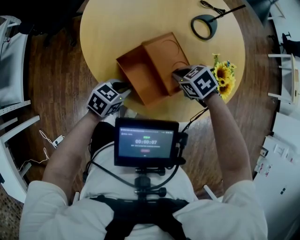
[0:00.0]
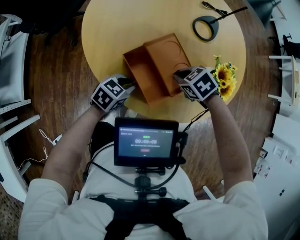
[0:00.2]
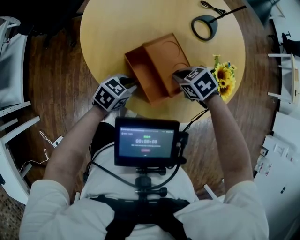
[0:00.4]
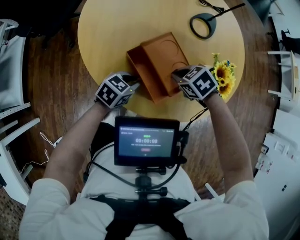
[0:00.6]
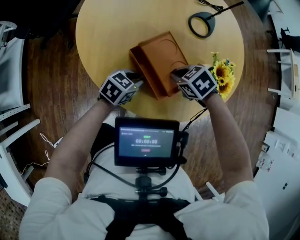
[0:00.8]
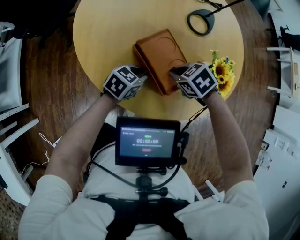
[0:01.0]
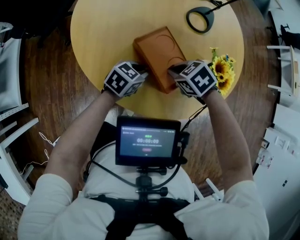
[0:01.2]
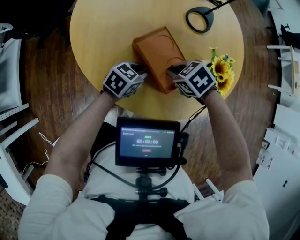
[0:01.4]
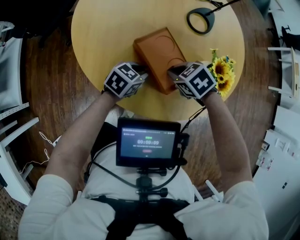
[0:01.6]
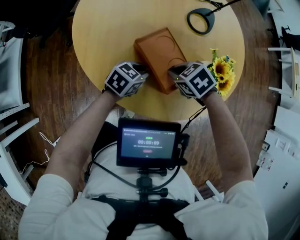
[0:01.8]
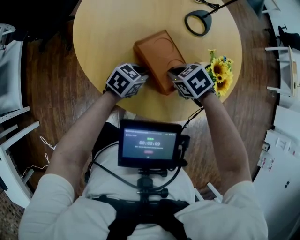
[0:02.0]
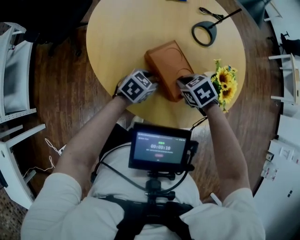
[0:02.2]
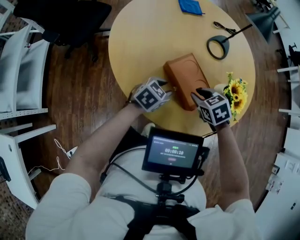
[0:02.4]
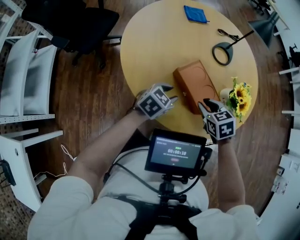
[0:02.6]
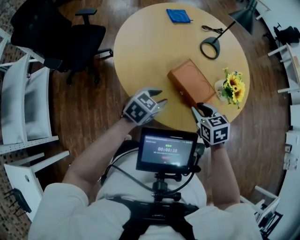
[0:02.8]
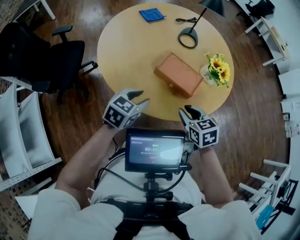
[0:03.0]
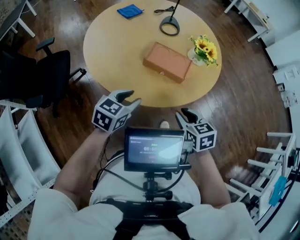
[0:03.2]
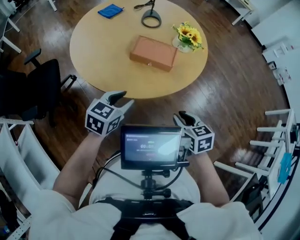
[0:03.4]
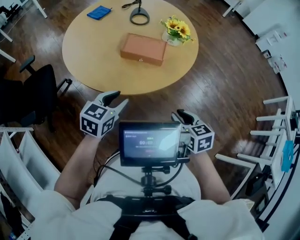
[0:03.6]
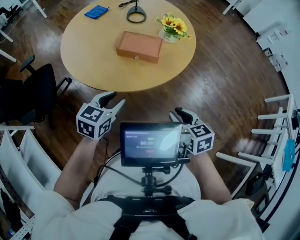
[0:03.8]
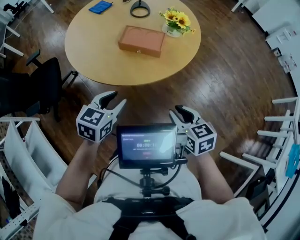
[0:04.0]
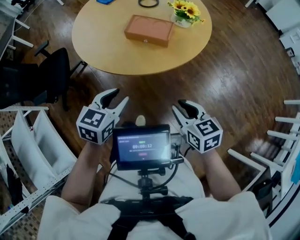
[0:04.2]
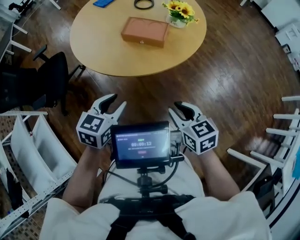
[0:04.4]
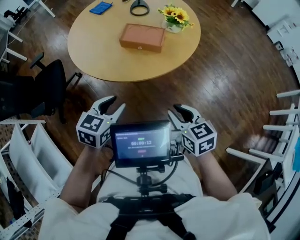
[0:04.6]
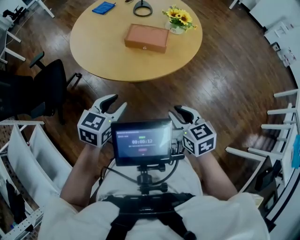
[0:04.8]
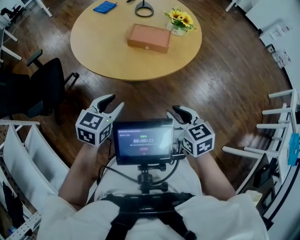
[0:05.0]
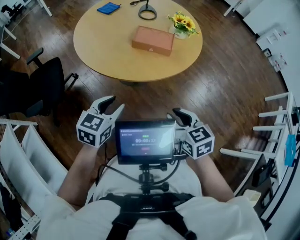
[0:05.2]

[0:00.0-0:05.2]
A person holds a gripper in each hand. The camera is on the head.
0.0 to 1.8 s: The left gripper moves about 10 cm.
1.8 to 3.4 s: The left gripper moves some 25 cm, and swivels some 30 degrees. Meanwhile the right gripper changes place by some 30 cm, rotates roughly 70 degrees, and opens.
3.4 to 5.2 s: The left gripper goes some 15 cm backward and to the left, while the right gripper shifts some 15 cm backward, to the left and upward.

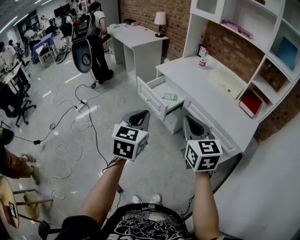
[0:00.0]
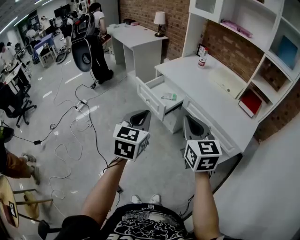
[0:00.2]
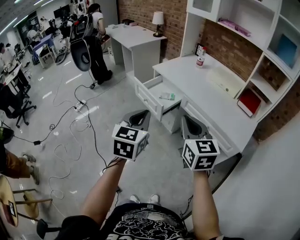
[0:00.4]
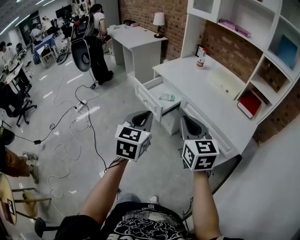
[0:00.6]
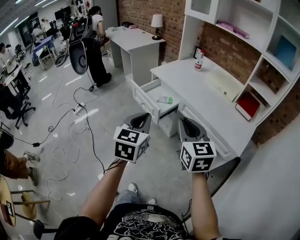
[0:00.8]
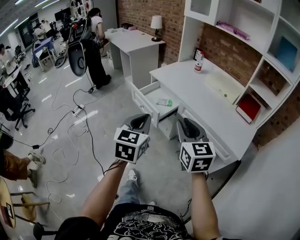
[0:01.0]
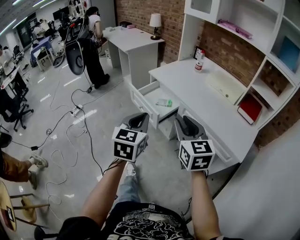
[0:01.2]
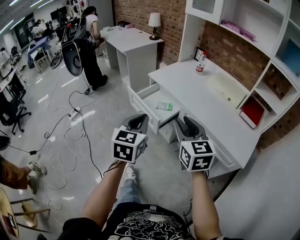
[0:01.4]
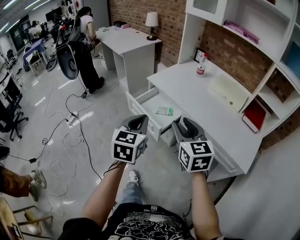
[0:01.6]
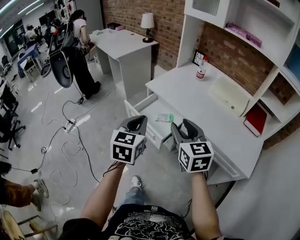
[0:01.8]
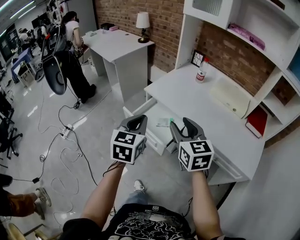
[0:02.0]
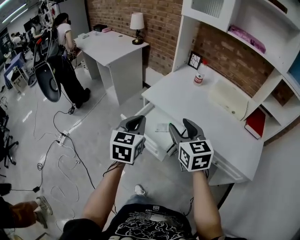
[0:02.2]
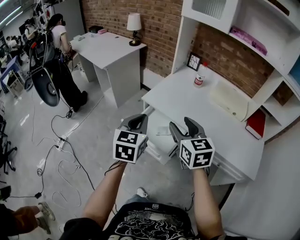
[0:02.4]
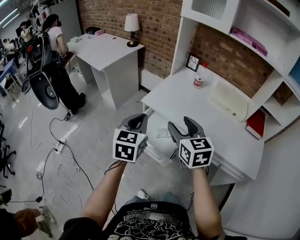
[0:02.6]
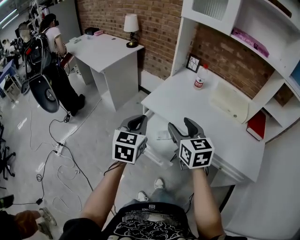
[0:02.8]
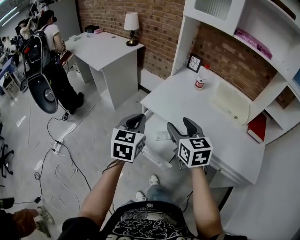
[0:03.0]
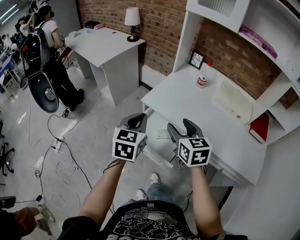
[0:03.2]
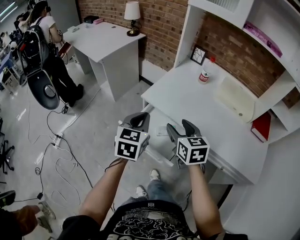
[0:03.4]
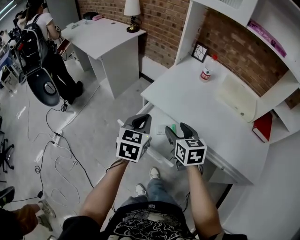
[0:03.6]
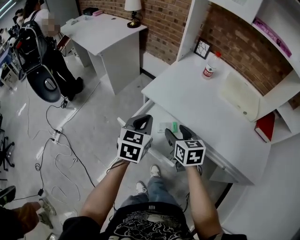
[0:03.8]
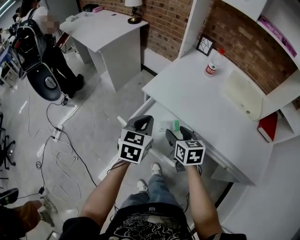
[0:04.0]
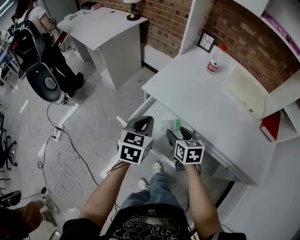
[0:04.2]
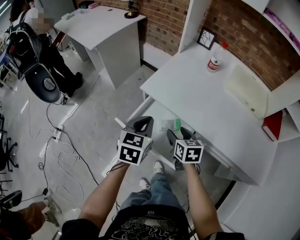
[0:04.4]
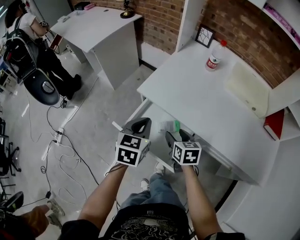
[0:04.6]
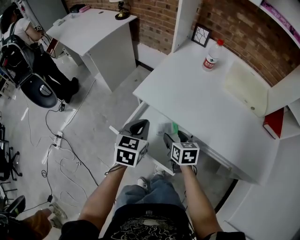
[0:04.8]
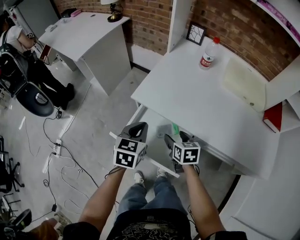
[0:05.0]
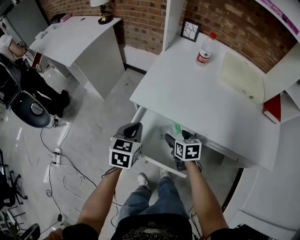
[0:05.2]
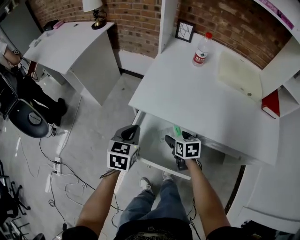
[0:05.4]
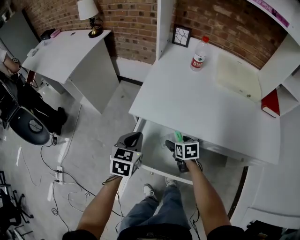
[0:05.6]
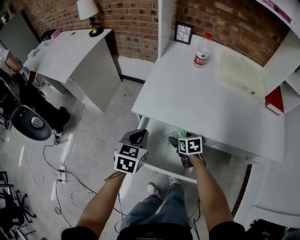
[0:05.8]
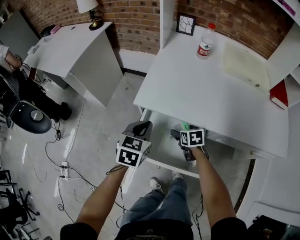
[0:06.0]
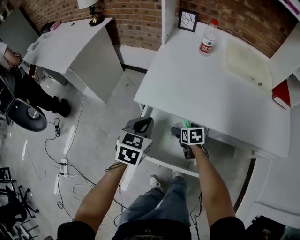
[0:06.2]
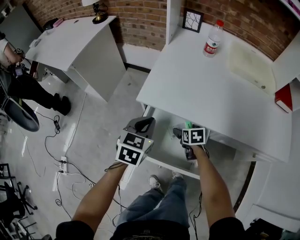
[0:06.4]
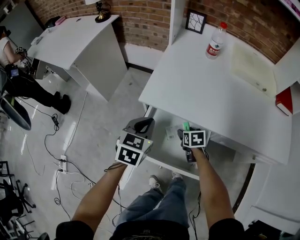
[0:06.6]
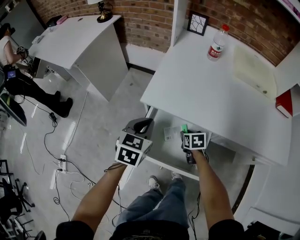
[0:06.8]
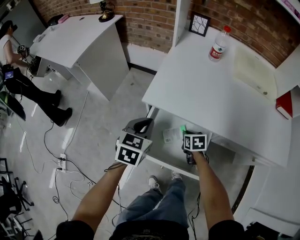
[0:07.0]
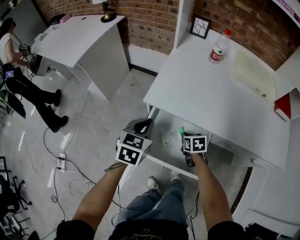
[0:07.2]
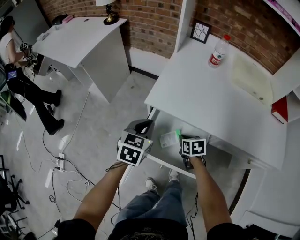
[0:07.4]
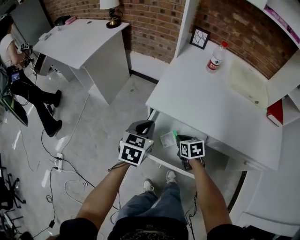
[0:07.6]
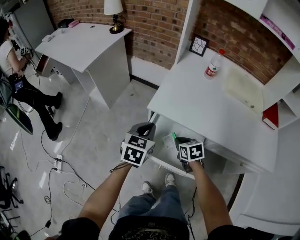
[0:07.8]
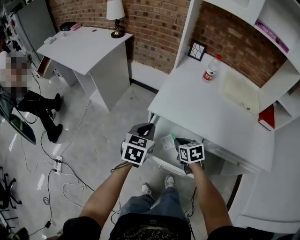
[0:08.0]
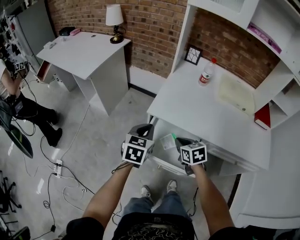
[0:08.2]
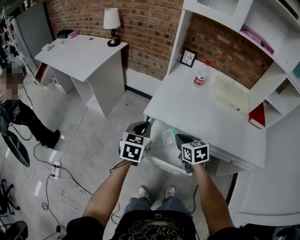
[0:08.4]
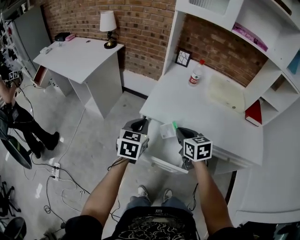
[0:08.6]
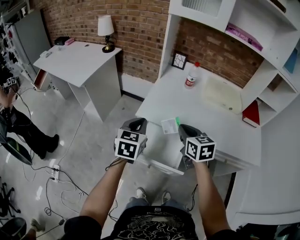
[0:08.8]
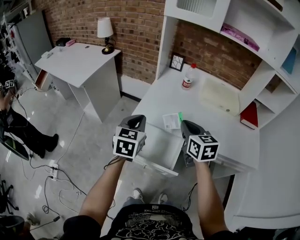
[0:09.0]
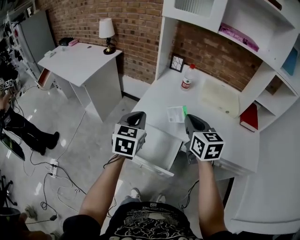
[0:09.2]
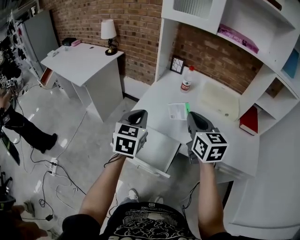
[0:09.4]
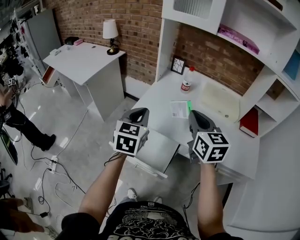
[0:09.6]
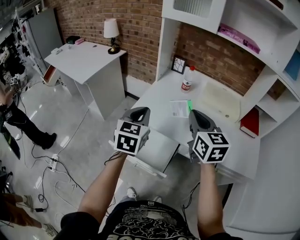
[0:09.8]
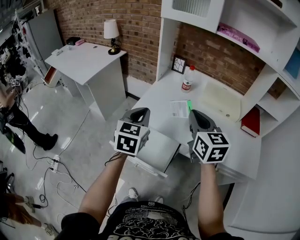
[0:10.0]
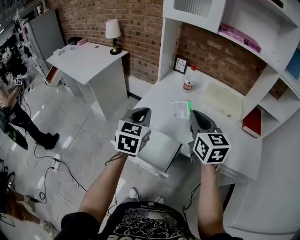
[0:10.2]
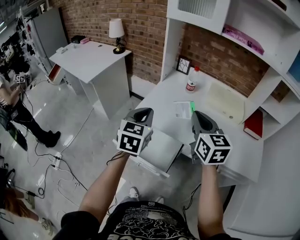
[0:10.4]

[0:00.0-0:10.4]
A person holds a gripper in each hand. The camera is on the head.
0.0 to 1.4 s: Both grippers move forward, approximately 15 cm.
1.4 to 3.0 s: The two grippers go roughly 30 cm forward.
3.0 to 4.4 s: The right gripper travels downward by approximately 25 cm, and changes its angle by approximately 30 degrees. The left gripper goes some 15 cm downward.
4.4 to 6.0 s: The left gripper moves downward and forward, roughly 10 cm, and changes its angle by about 20 degrees. Meanwhile the right gripper goes roughly 20 cm downward and forward, and opens its fingers.
6.0 to 7.4 s: The right gripper closes.
7.4 to 9.0 s: The right gripper shifts approximately 35 cm upward, and angles its fingers upward, by roughly 30 degrees. Meanwhile the left gripper heads upward, covering approximately 20 cm.
9.0 to 10.4 s: The right gripper goes roughly 10 cm upward and to the right. The left gripper goes approximately 5 cm to the right.

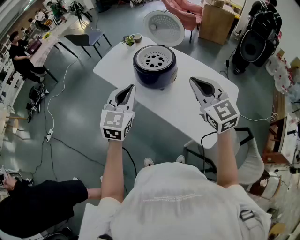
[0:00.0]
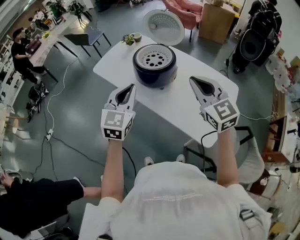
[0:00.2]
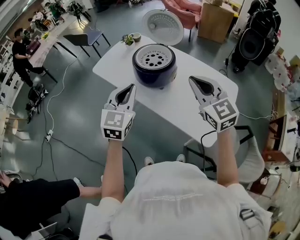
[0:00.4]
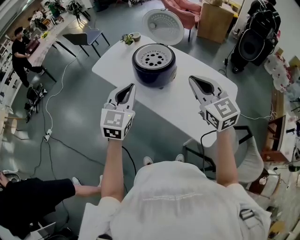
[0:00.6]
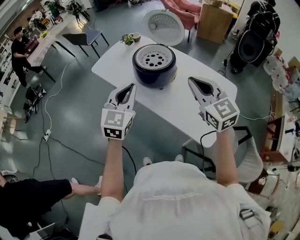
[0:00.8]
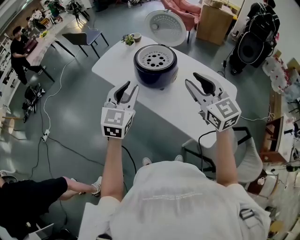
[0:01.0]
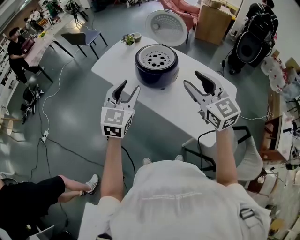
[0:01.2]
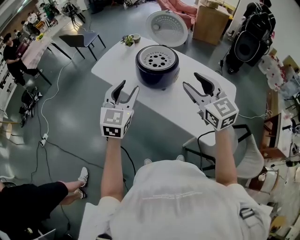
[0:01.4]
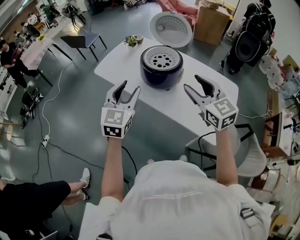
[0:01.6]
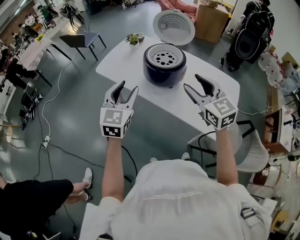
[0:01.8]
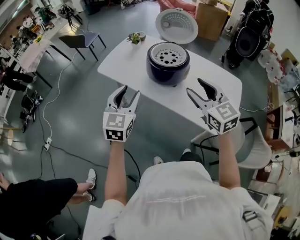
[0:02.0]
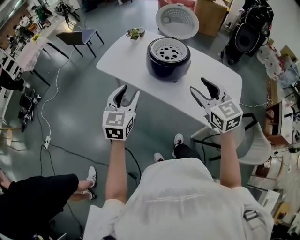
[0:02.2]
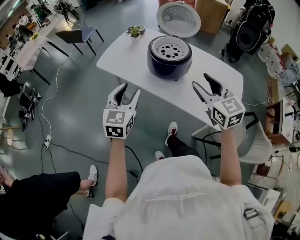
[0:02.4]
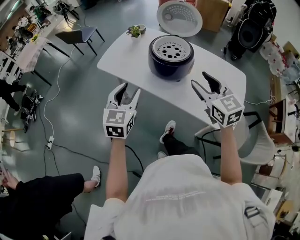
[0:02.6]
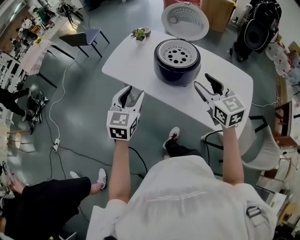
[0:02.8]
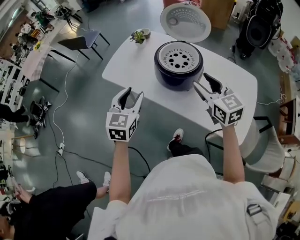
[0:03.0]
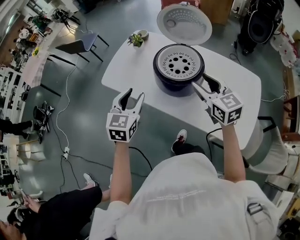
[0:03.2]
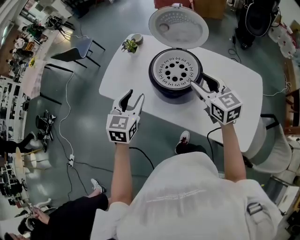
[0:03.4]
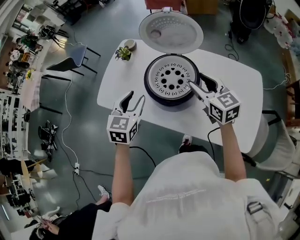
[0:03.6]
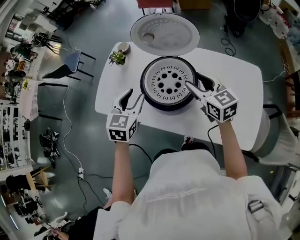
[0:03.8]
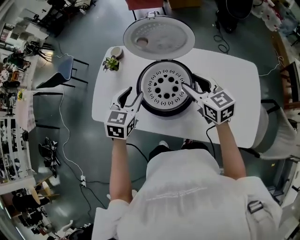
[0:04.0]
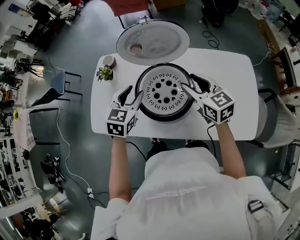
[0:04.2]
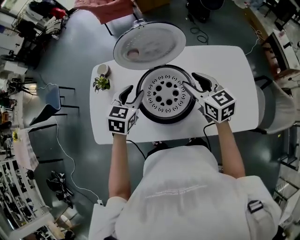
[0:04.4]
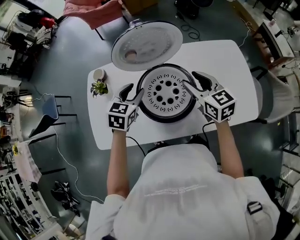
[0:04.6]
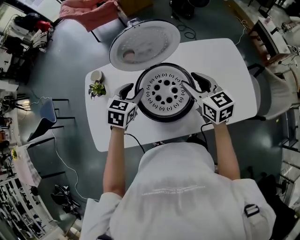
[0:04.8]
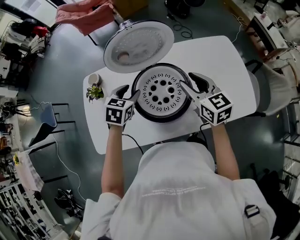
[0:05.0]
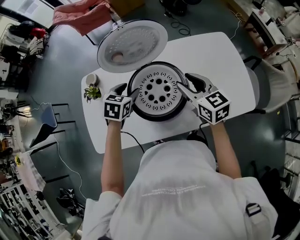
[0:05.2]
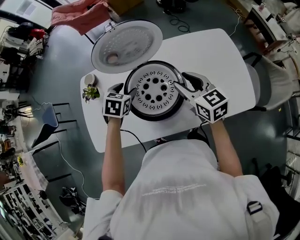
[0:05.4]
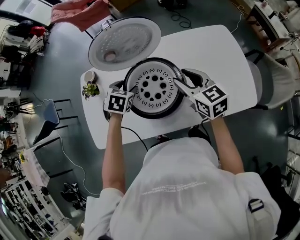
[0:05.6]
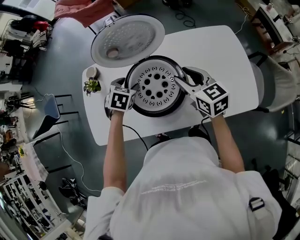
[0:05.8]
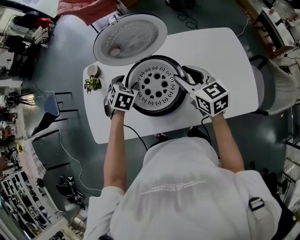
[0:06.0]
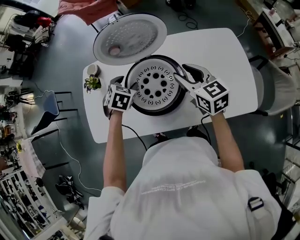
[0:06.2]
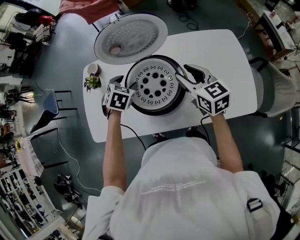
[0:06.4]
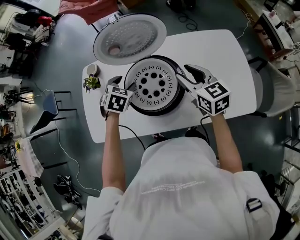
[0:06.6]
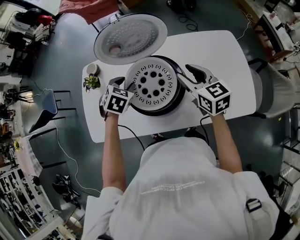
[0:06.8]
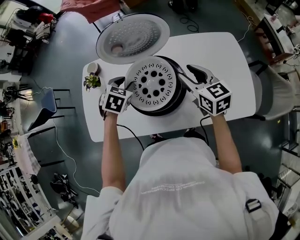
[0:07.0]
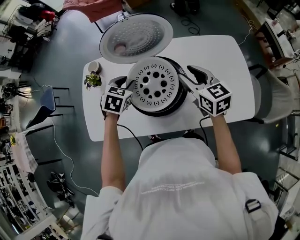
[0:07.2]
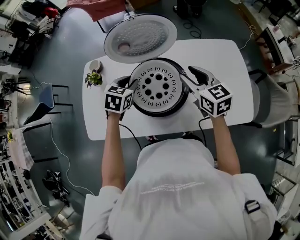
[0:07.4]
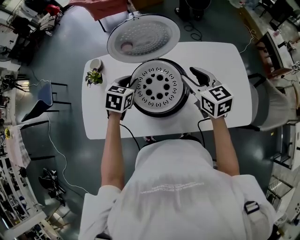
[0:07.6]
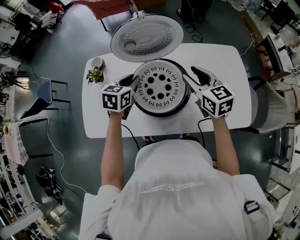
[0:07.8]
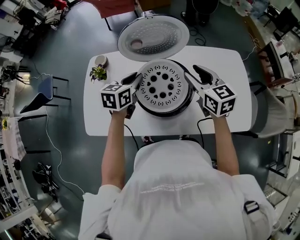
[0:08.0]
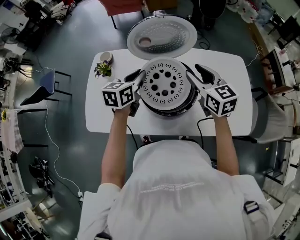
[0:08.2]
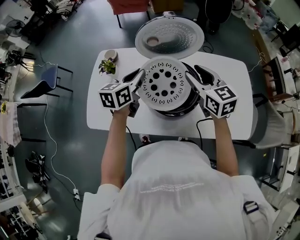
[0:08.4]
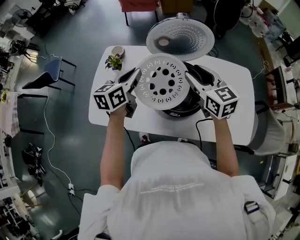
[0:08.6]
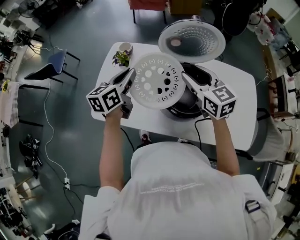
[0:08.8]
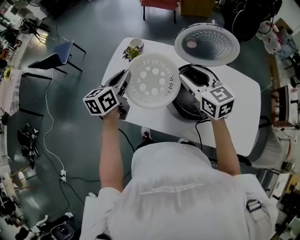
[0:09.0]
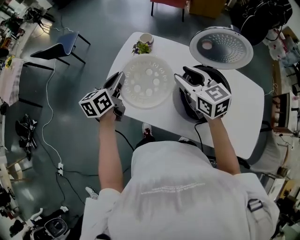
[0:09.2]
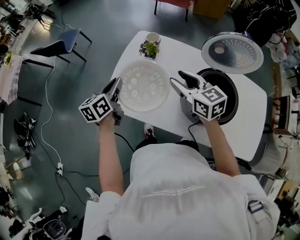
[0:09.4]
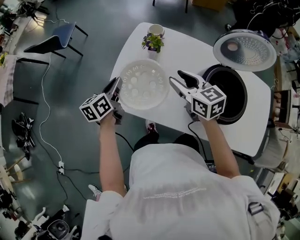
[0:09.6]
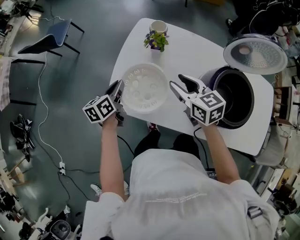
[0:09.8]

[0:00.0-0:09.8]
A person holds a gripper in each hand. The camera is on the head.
0.0 to 1.4 s: The right gripper opens, while the left gripper opens.
1.4 to 2.8 s: The grippers both shift to the left and downward by roughly 10 cm.
2.8 to 4.2 s: The right gripper travels forward and downward by about 20 cm, and swivels some 20 degrees. Meanwhile the left gripper goes approximately 30 cm forward, and swivels some 30 degrees.
4.2 to 5.6 s: The left gripper shifts approximately 10 cm downward and forward, and changes its angle by some 30 degrees.
5.6 to 7.0 s: The left gripper closes.
7.0 to 8.4 s: The right gripper is displaced to the left by roughly 5 cm. Meanwhile the left gripper is displaced upward by about 10 cm, tips its fingers upward by roughly 40 degrees, and closes up.
8.4 to 9.8 s: The right gripper goes upward and returns, about 15 cm each way, and changes its angle by some 20 degrees. Meanwhile the left gripper shifts roughly 5 cm backward, moves some 15 cm upward and comes back, and swivels about 30 degrees.
